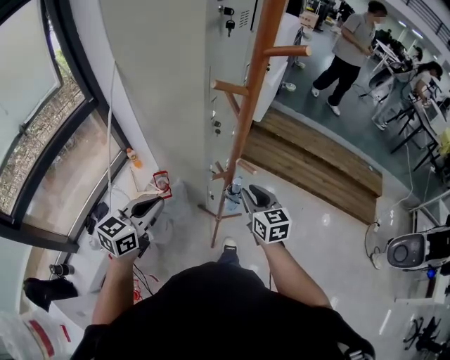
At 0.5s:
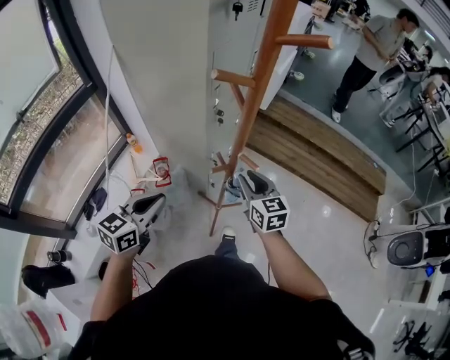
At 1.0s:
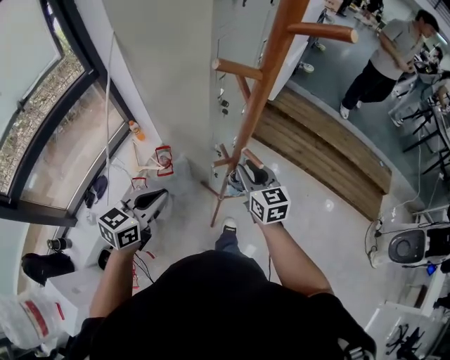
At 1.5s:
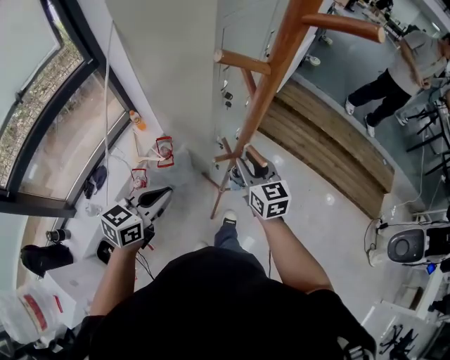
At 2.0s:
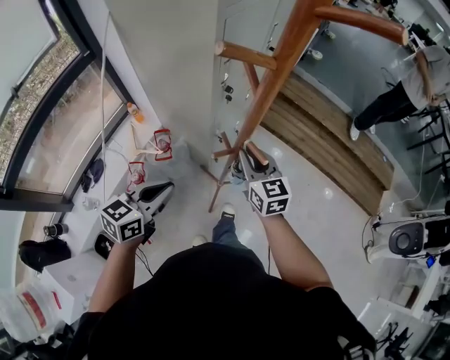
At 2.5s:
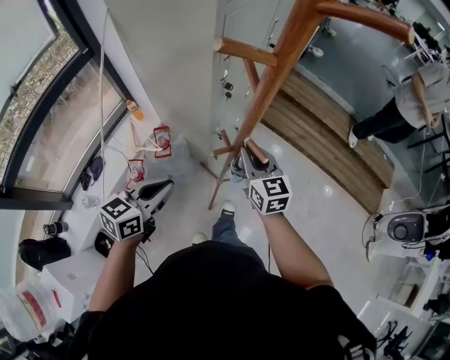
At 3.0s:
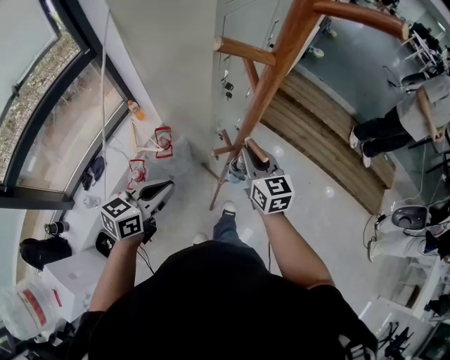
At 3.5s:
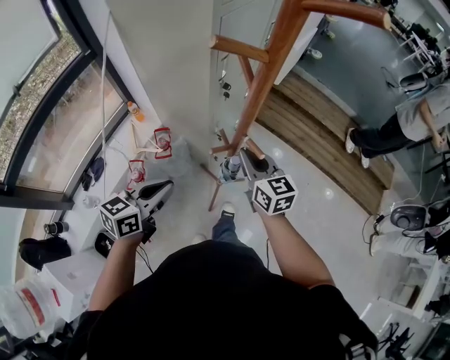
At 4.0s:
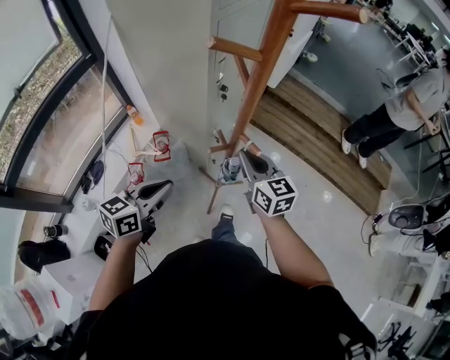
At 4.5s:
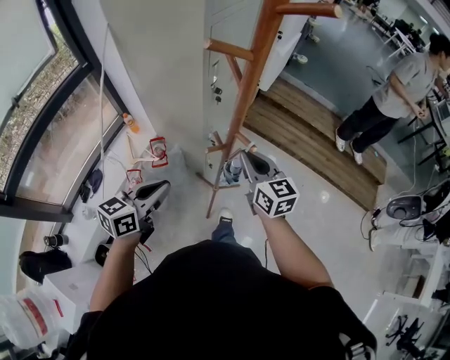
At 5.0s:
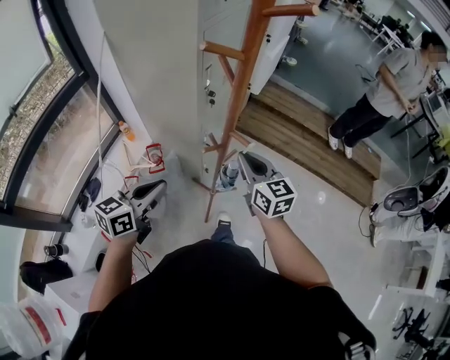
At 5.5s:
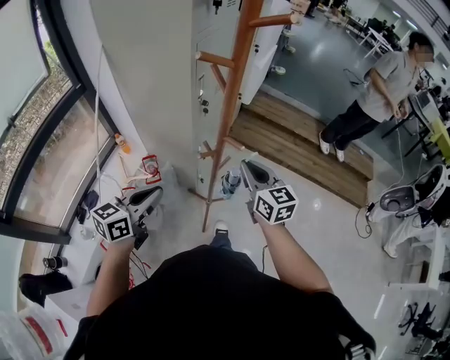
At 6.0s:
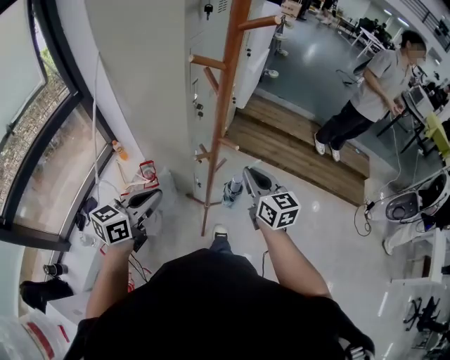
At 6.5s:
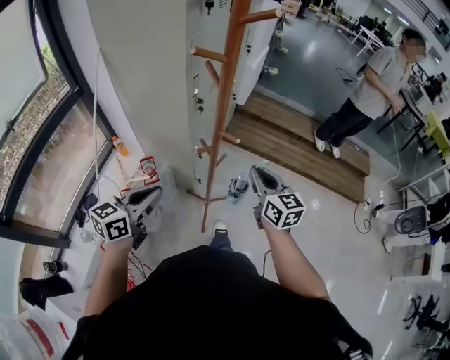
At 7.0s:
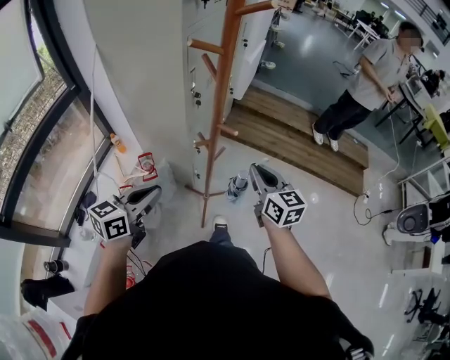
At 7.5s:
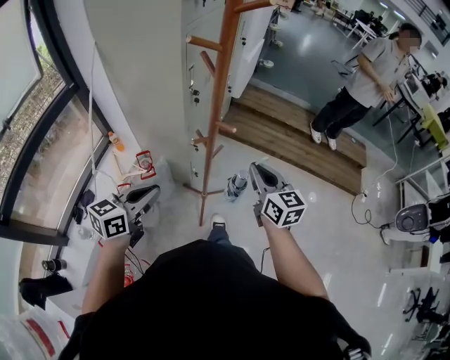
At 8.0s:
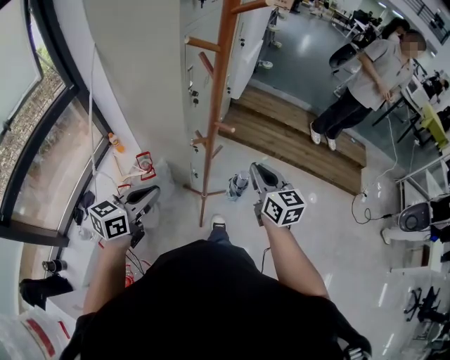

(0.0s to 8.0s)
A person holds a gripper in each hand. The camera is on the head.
0.0s - 2.0s: The right gripper travels forward by about 10 cm. The left gripper shifts roughly 10 cm downward.
2.0s - 4.0s: The grippers stay close to where they were, moving slightly.
4.0s - 6.0s: The left gripper heads backward and upward, covering about 10 cm. The right gripper goes roughly 15 cm backward, to the right and upward.
6.0s - 8.0s: The right gripper shifts by approximately 5 cm.

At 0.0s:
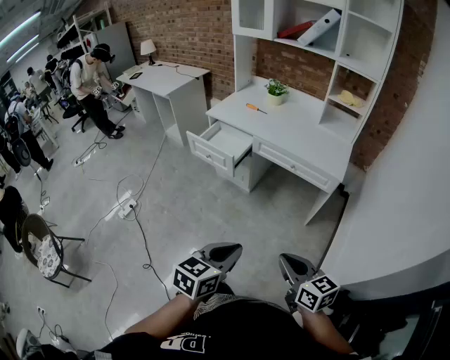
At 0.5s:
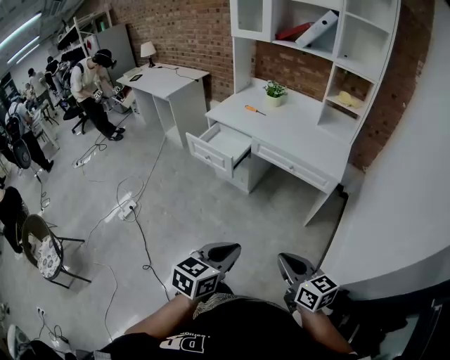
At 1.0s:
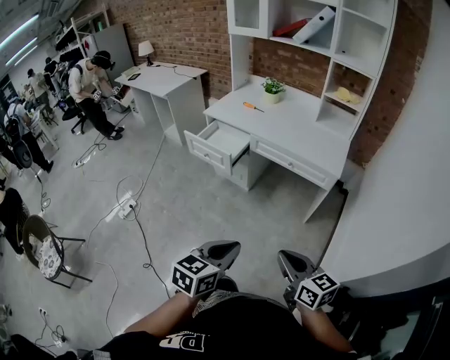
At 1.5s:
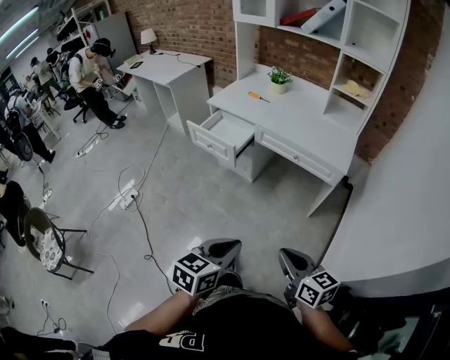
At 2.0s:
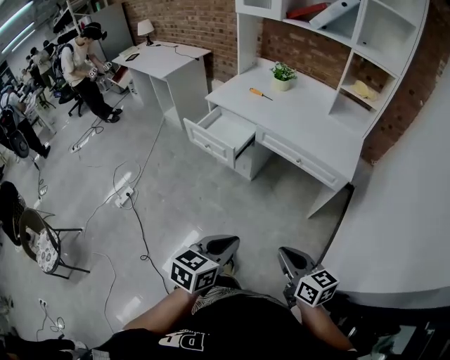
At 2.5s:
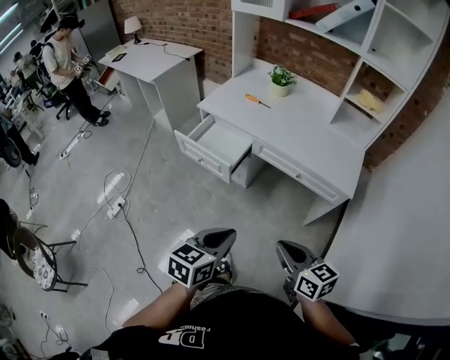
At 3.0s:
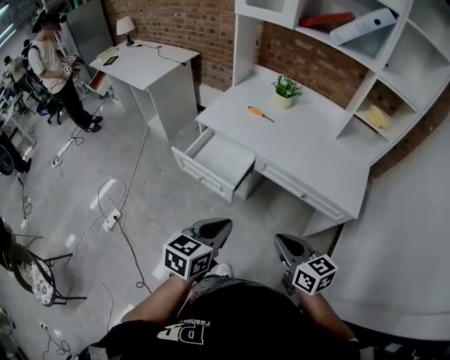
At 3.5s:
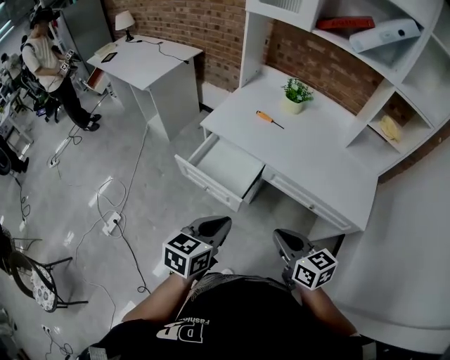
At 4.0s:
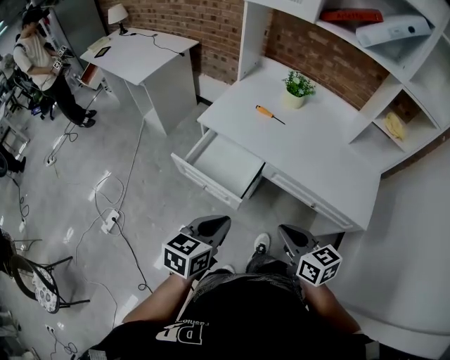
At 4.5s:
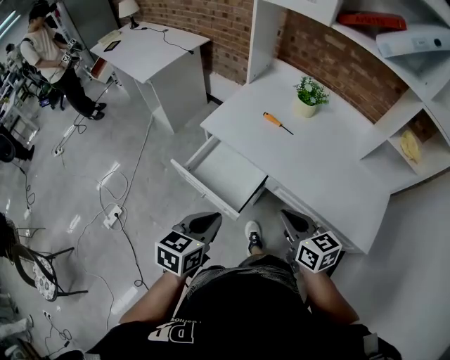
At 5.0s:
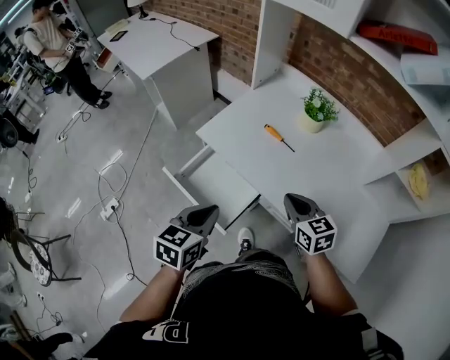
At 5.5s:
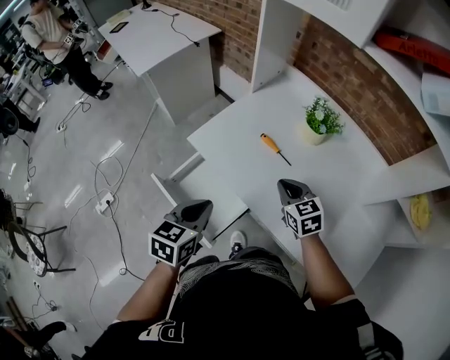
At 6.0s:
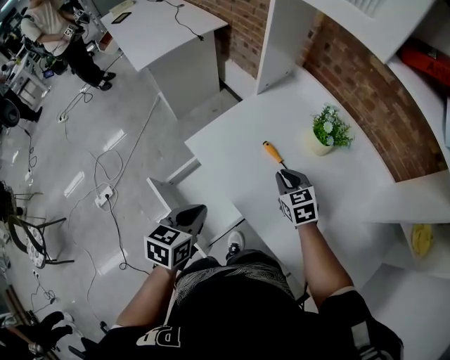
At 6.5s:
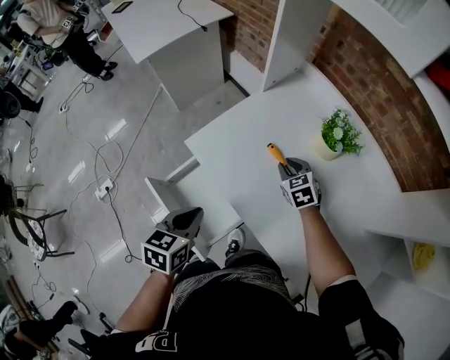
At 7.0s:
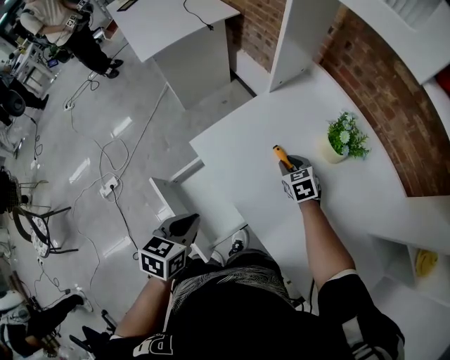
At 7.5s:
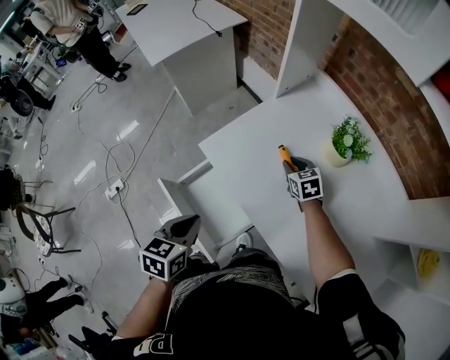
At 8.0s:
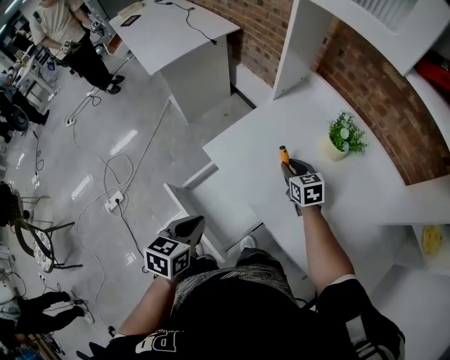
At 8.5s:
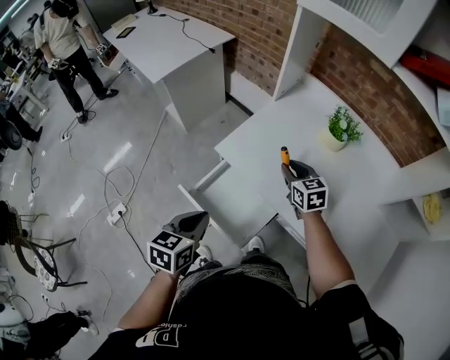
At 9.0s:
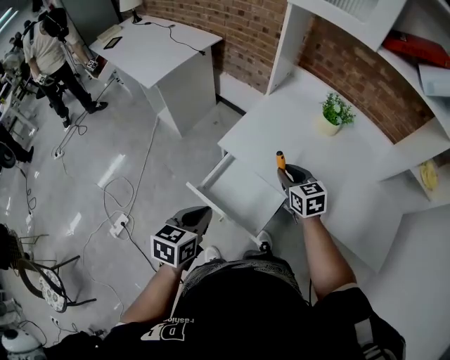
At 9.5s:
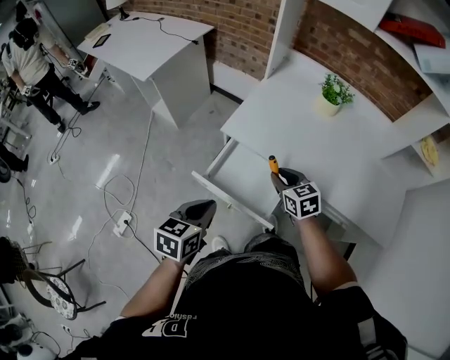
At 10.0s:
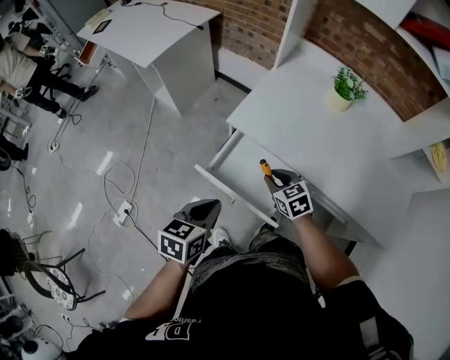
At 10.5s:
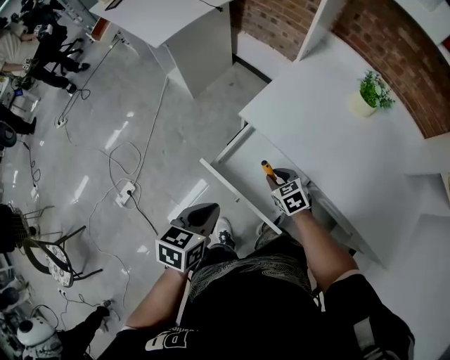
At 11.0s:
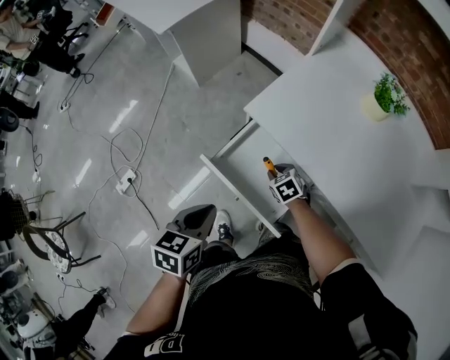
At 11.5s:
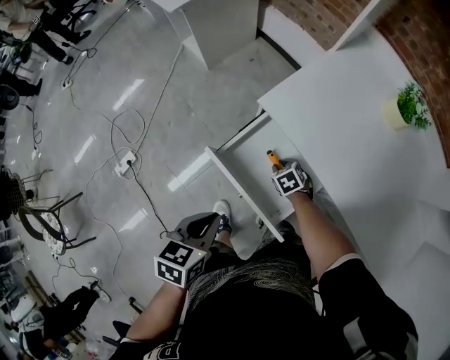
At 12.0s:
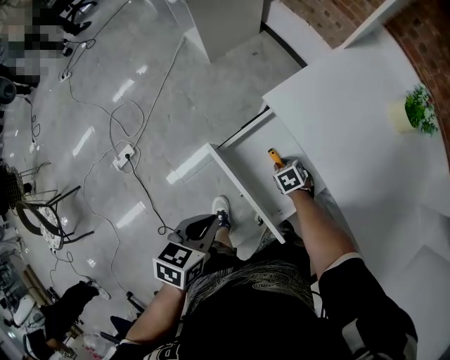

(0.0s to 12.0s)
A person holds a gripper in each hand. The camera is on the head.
0.0s - 2.0s: The two grippers go approximately 10 cm forward.
2.0s - 4.0s: The two grippers travel together, forward, some 40 cm.
4.0s - 6.0s: The right gripper travels forward by about 50 cm, and changes its angle by about 30 degrees. Meanwhile the left gripper moves forward, some 30 cm, and changes its angle by roughly 30 degrees.
6.0s - 8.0s: The right gripper shifts approximately 5 cm forward; the left gripper is displaced to the left by about 5 cm.
8.0s - 10.0s: The right gripper shifts about 25 cm backward and to the left. The left gripper shifts about 15 cm to the left and backward.
10.0s - 12.0s: The left gripper travels downward by some 10 cm, and swivels approximately 20 degrees. Meanwhile the right gripper heads downward, covering approximately 25 cm, and changes its angle by approximately 30 degrees.

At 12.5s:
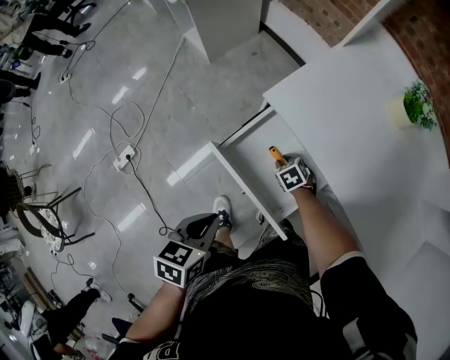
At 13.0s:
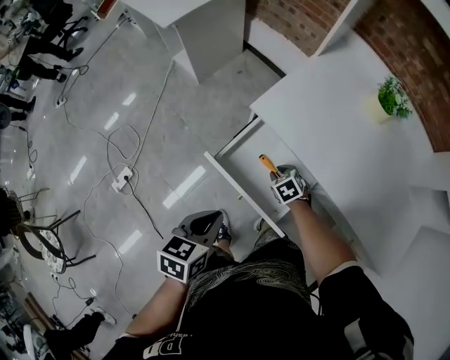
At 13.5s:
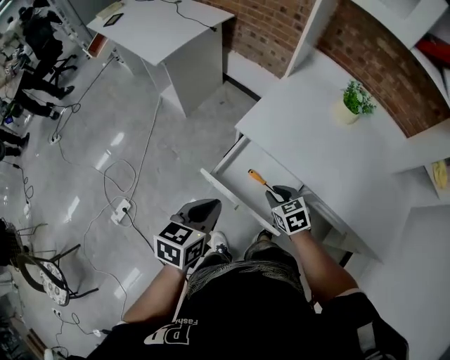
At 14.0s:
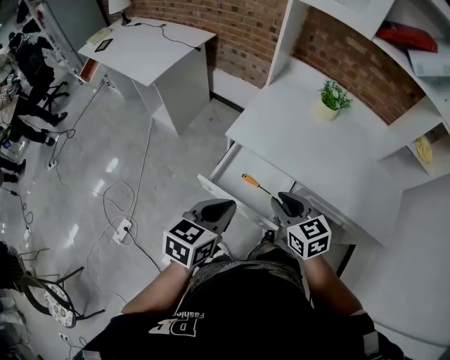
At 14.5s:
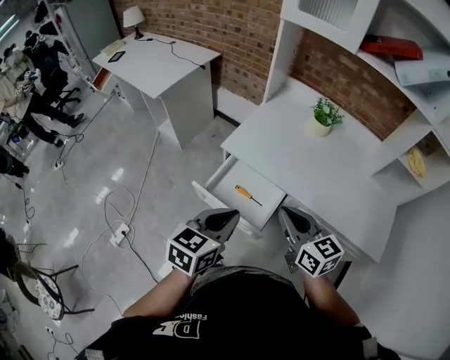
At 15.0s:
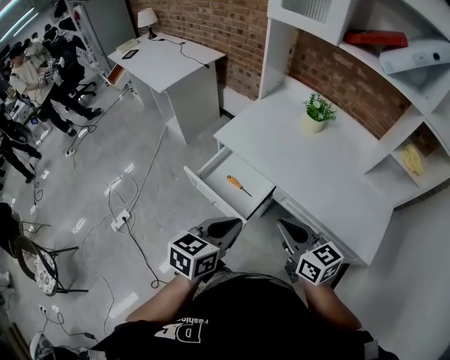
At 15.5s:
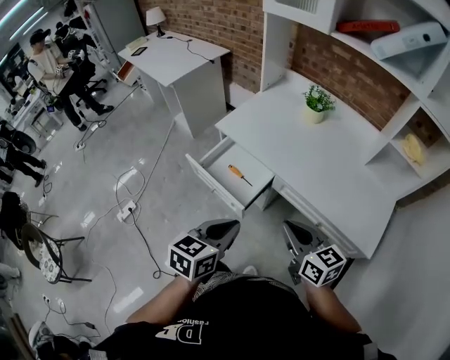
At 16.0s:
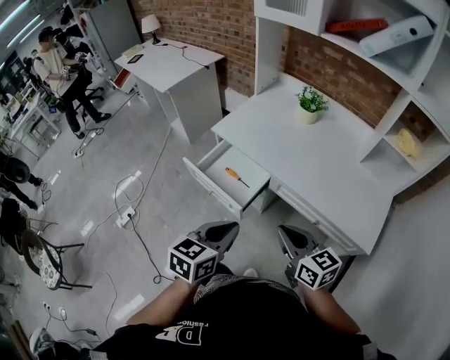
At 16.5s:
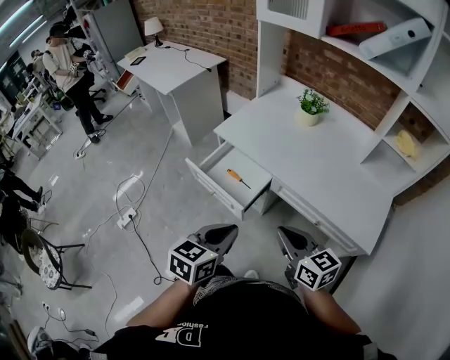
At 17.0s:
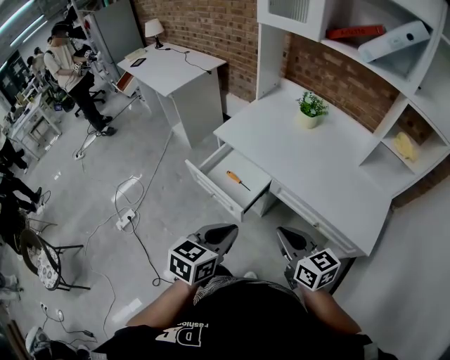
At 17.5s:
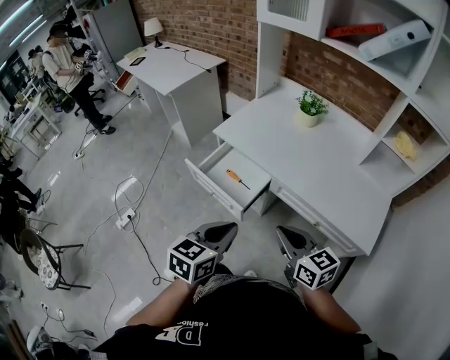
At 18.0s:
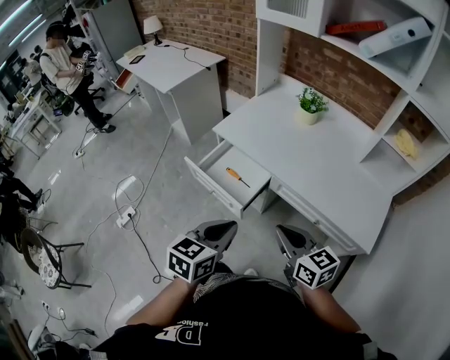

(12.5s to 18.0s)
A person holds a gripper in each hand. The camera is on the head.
12.5s - 14.5s: The right gripper moves upward and backward, some 50 cm, tips its fingers upward by roughly 60 degrees, and closes up. The left gripper shifts roughly 25 cm upward and to the right, and swivels roughly 40 degrees.
14.5s - 16.0s: Both grippers move backward and to the right, approximately 20 cm.
16.0s - 18.0s: The grippers stay close to where they were, moving slightly.

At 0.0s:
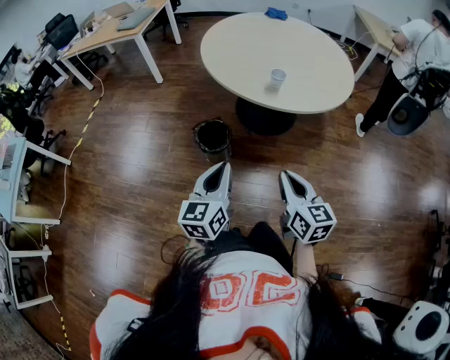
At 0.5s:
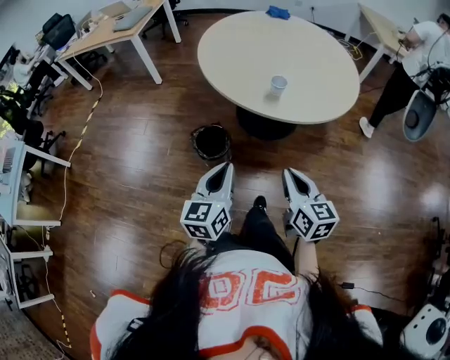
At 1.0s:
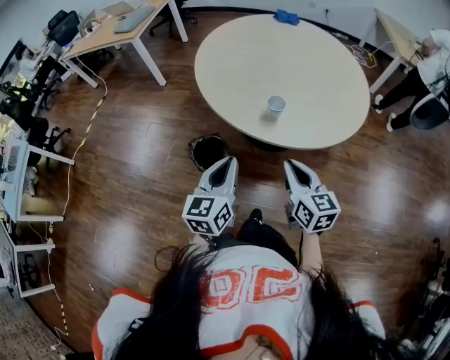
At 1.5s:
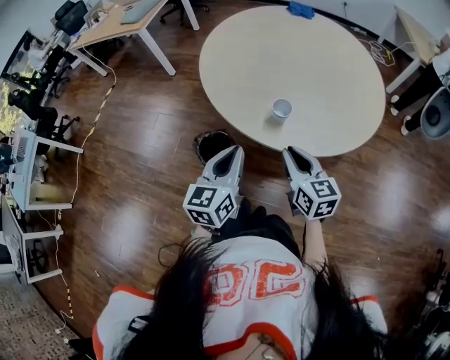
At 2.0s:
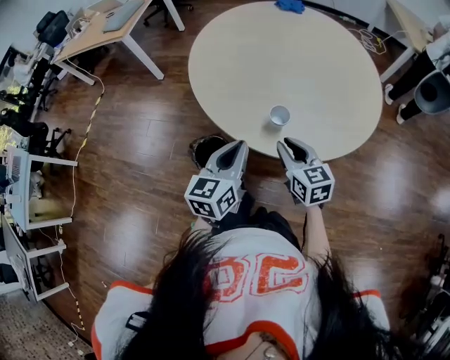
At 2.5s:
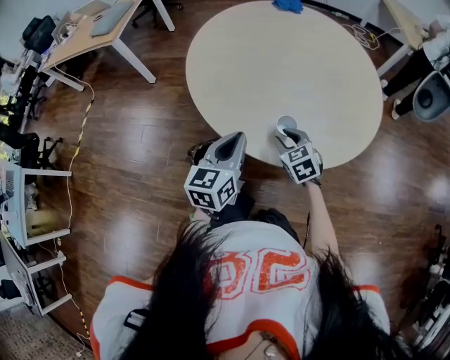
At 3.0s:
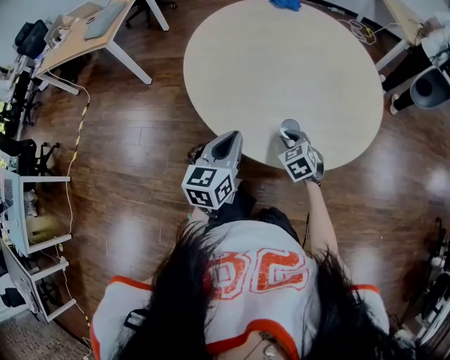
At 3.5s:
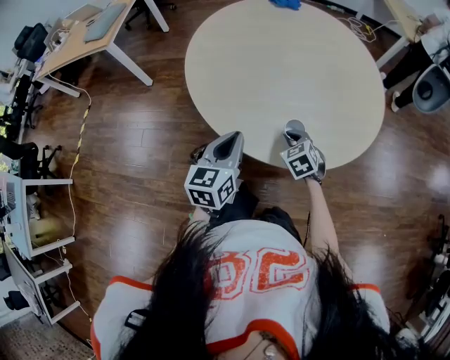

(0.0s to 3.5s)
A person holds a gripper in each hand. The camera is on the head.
0.0s - 2.0s: The left gripper moves forward and to the right, about 25 cm. The right gripper shifts about 30 cm forward.
2.0s - 3.5s: The right gripper shifts roughly 15 cm downward and forward, and swivels some 30 degrees. The left gripper moves forward, roughly 5 cm.
